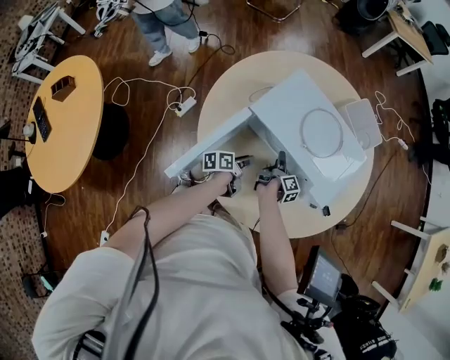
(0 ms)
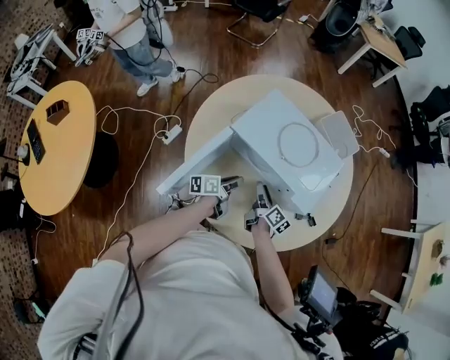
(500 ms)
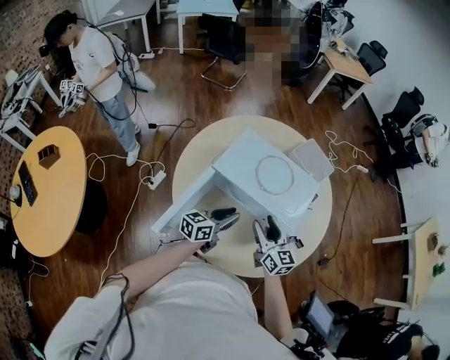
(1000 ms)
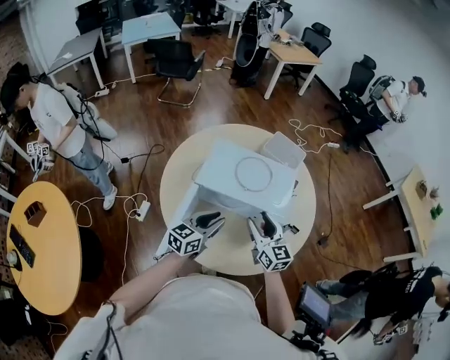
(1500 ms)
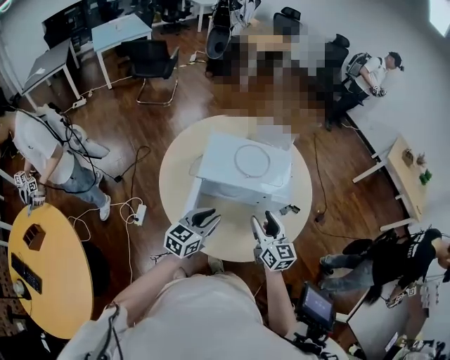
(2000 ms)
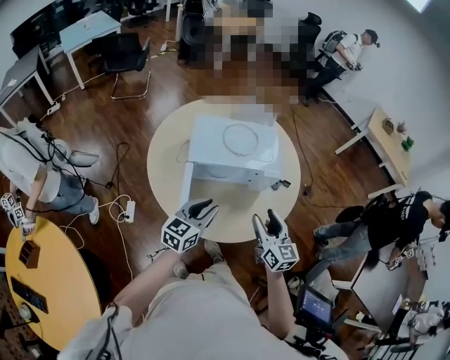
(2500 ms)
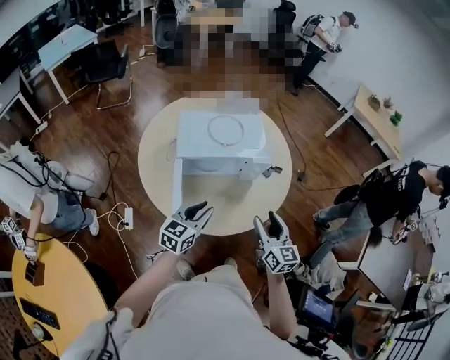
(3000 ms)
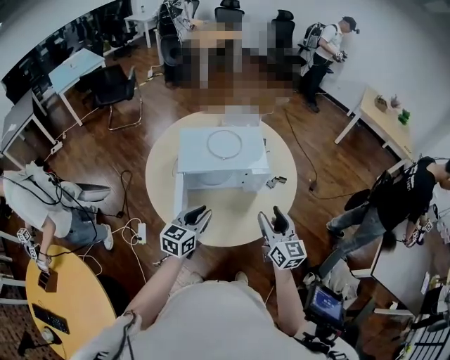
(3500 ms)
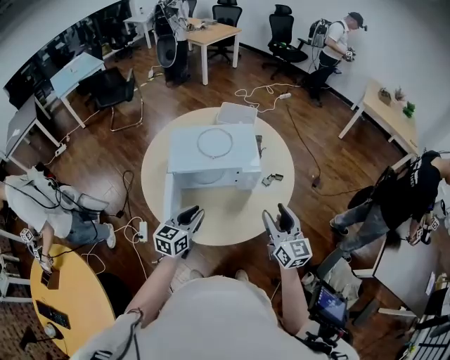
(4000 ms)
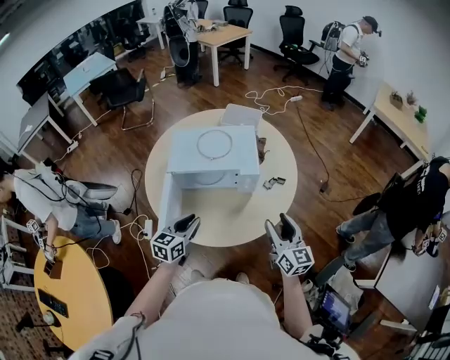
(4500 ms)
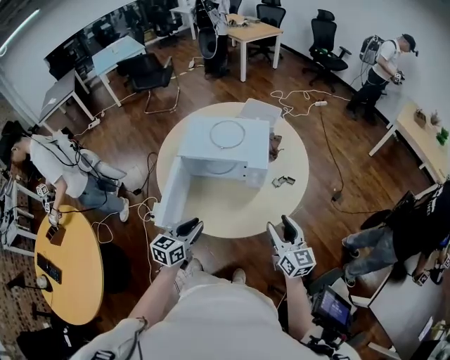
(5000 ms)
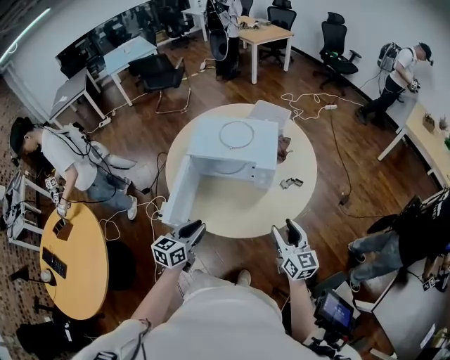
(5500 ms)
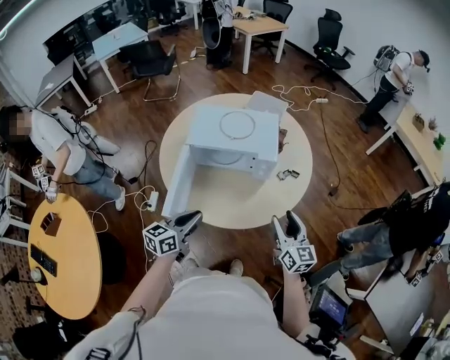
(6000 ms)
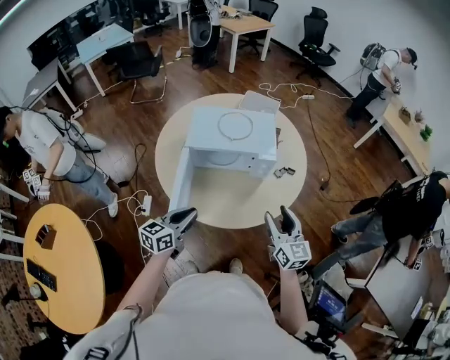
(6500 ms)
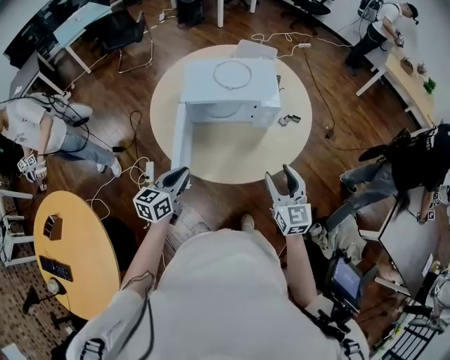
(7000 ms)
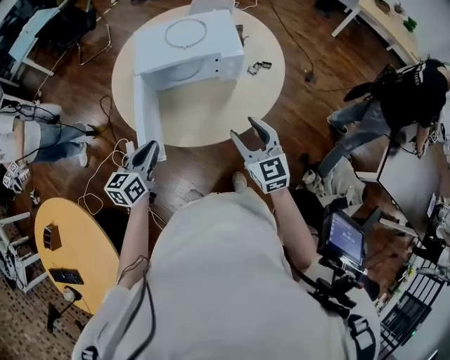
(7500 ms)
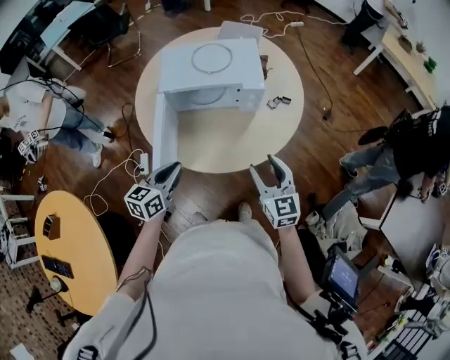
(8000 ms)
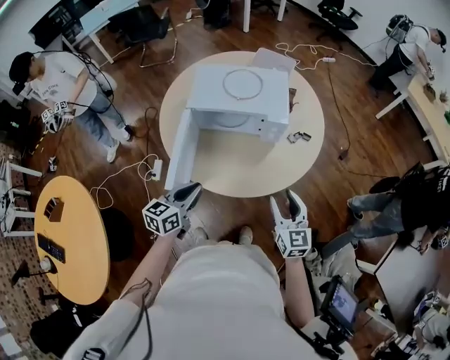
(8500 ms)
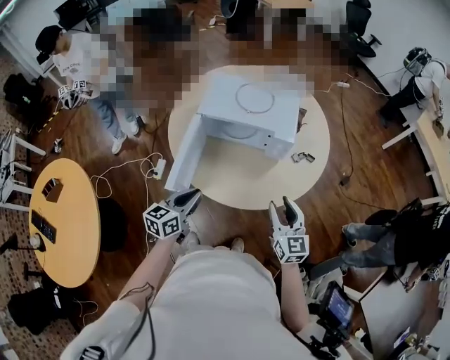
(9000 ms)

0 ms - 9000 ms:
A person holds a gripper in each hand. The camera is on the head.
0 ms - 2000 ms: The left gripper heads upward, covering approximately 30 cm, and rolls clockwise, seen from behind, by some 70 degrees, while the right gripper heads upward and backward, covering some 40 cm, and rotates around the line of its fingers by some 70 degrees, counterclockwise from behind.
2000 ms - 4500 ms: The right gripper moves to the right, about 20 cm. The left gripper goes some 10 cm to the right and backward.
4500 ms - 7000 ms: Both grippers move to the left and backward, some 15 cm.
7000 ms - 9000 ms: Both grippers travel together to the right, about 5 cm.

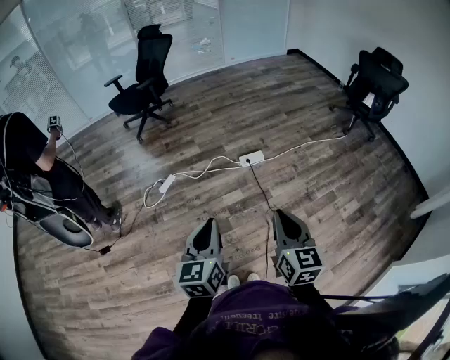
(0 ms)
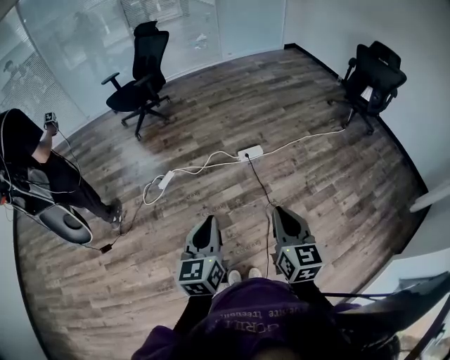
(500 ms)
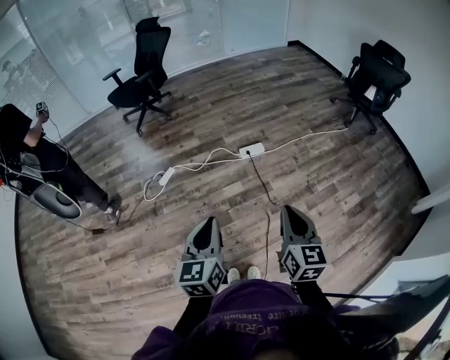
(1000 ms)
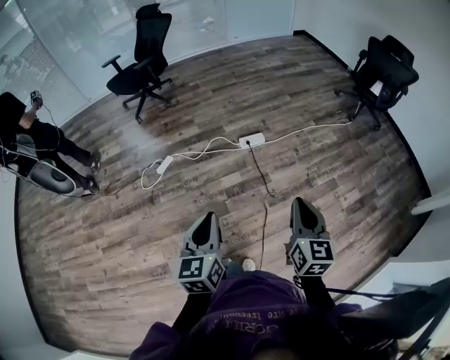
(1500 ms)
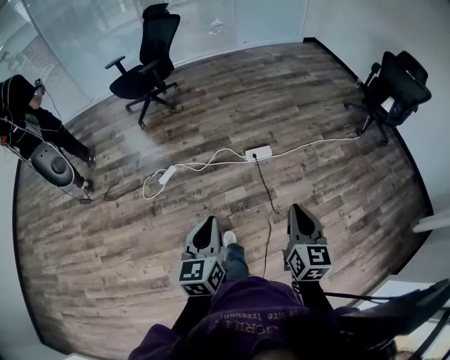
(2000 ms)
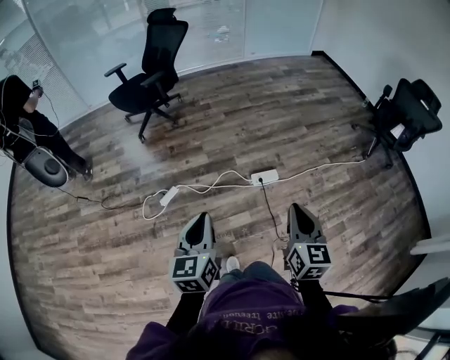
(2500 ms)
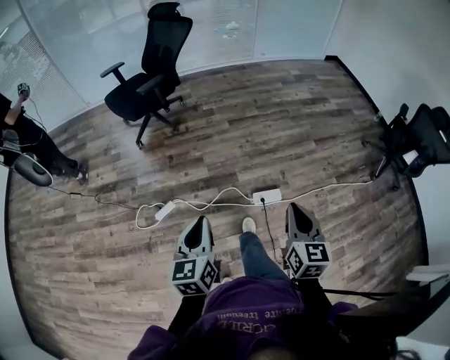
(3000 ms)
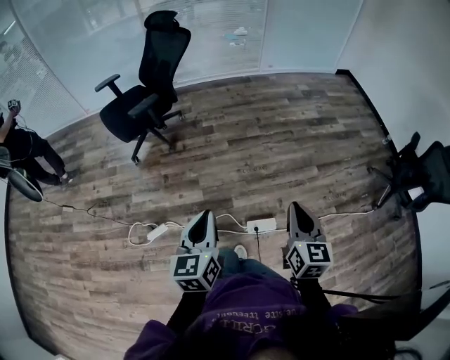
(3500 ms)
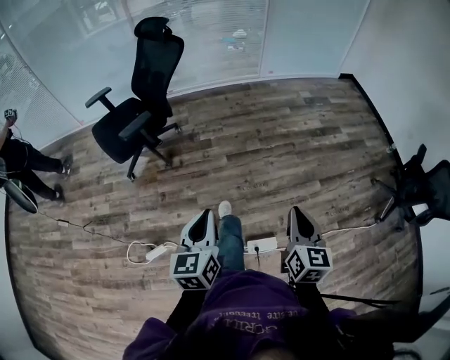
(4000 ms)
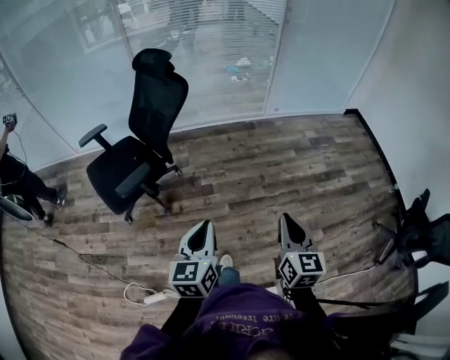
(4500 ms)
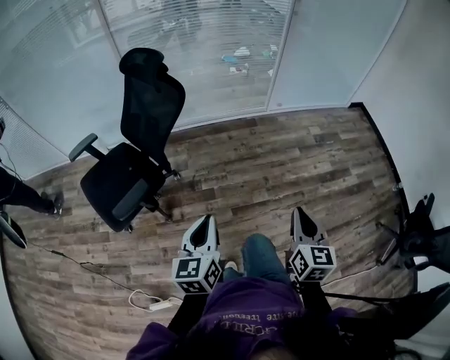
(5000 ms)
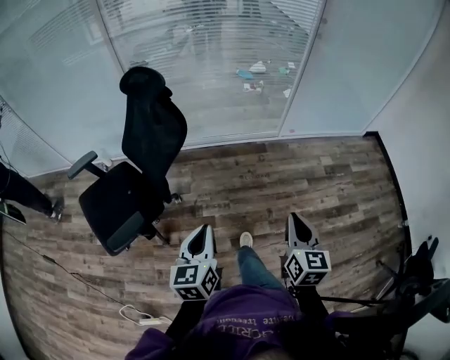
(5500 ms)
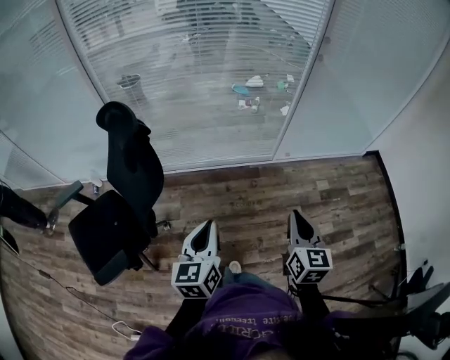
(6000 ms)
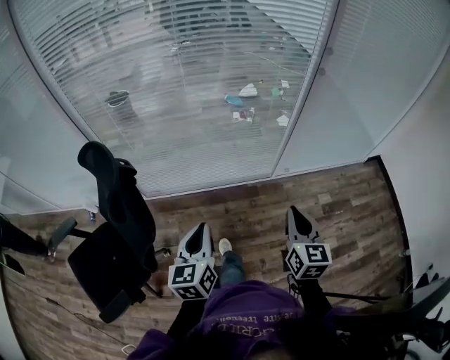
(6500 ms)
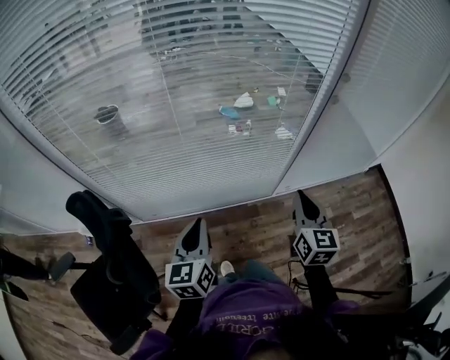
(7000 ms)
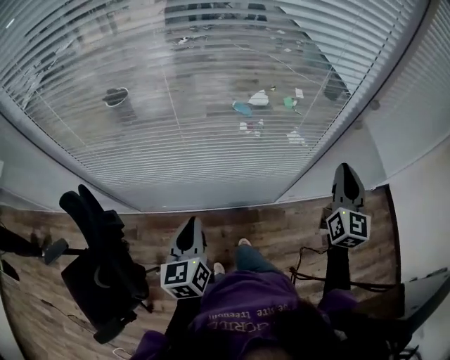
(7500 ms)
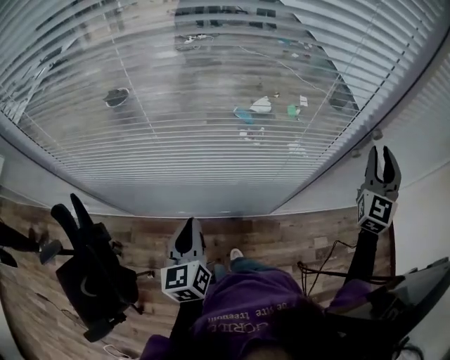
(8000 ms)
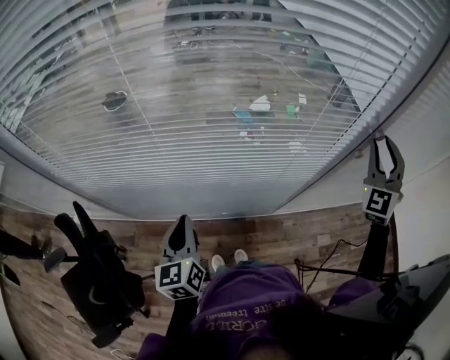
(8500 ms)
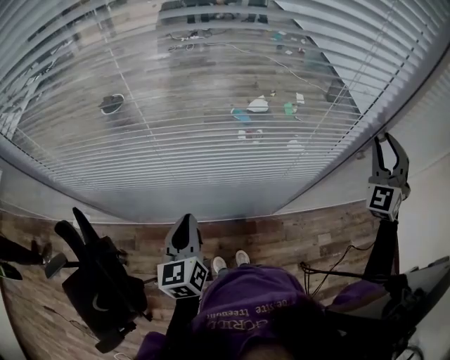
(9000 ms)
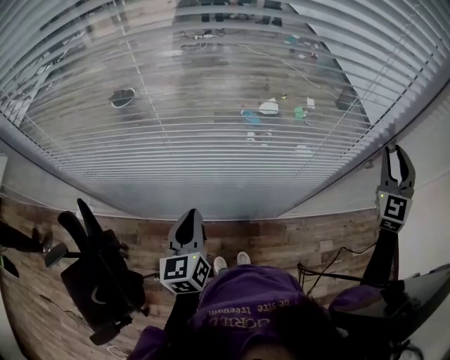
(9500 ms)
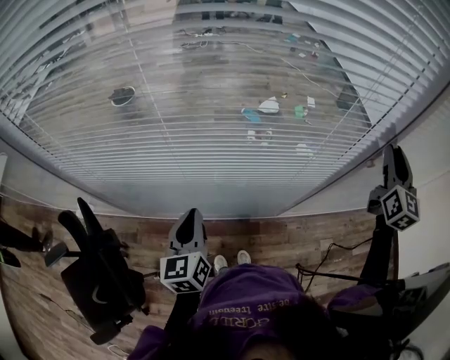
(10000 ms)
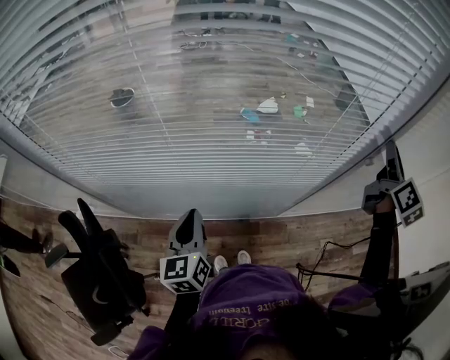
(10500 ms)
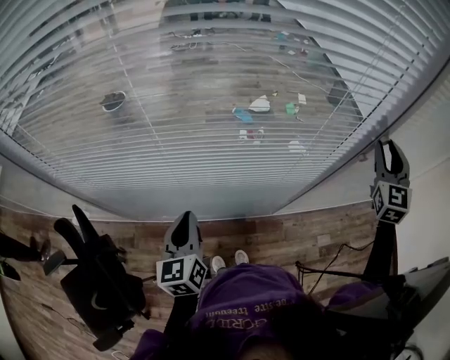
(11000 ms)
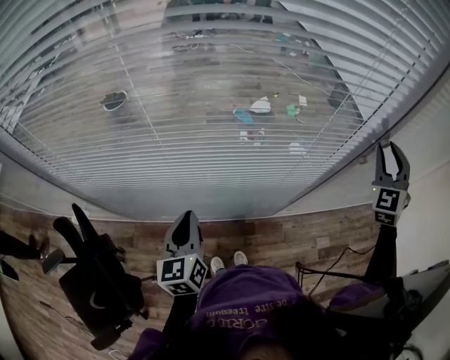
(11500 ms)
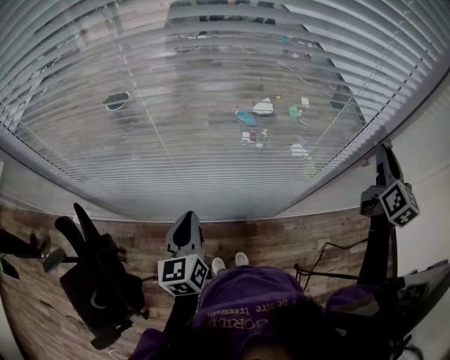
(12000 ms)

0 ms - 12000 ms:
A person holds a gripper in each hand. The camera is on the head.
0 ms - 2000 ms: The two grippers go some 10 cm forward.
2000 ms - 4000 ms: The pair of grippers is taken forward, approximately 80 cm.
4000 ms - 6000 ms: The pair of grippers is taken forward, roughly 80 cm.
6000 ms - 8000 ms: The pair of grippers is taken forward, roughly 60 cm. The right gripper turns by approximately 50 degrees, and opens.
8000 ms - 10000 ms: The left gripper shifts by approximately 5 cm. Meanwhile the right gripper turns by some 30 degrees.

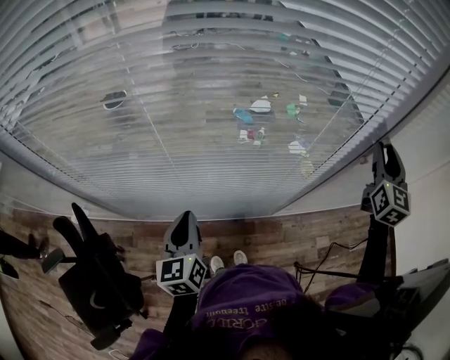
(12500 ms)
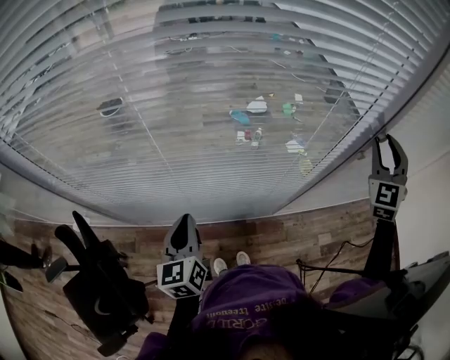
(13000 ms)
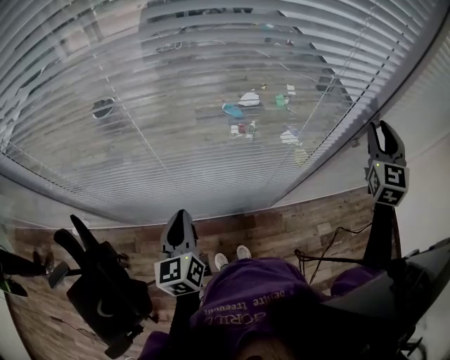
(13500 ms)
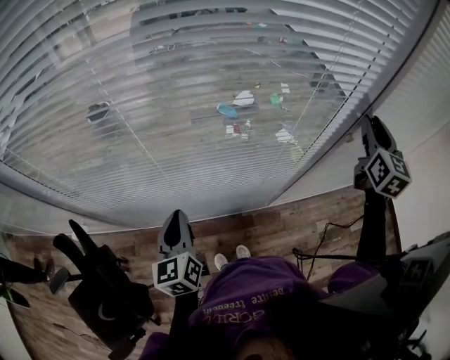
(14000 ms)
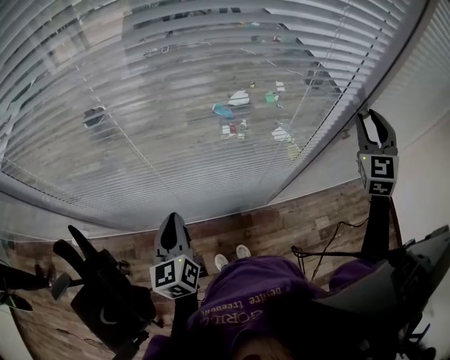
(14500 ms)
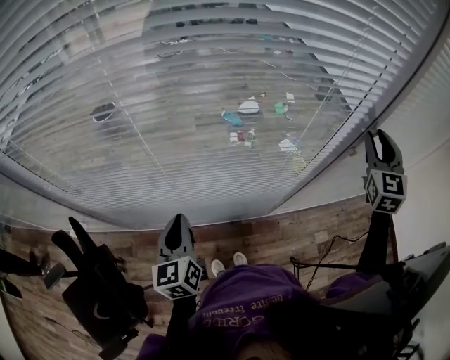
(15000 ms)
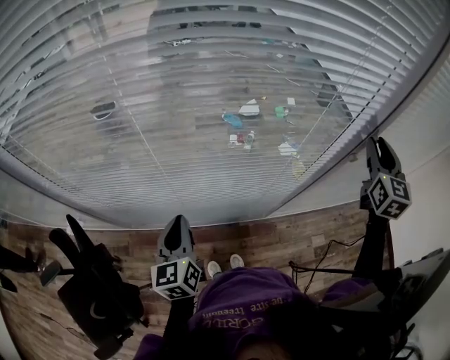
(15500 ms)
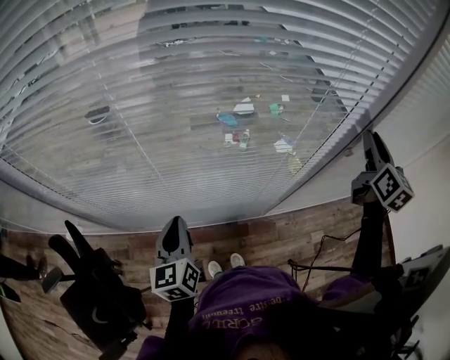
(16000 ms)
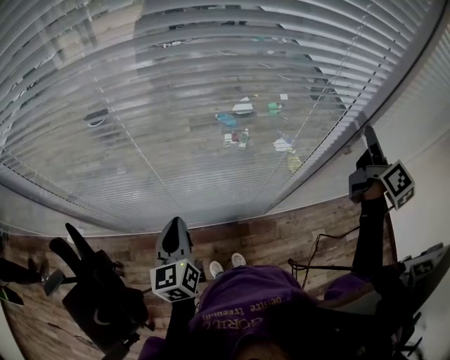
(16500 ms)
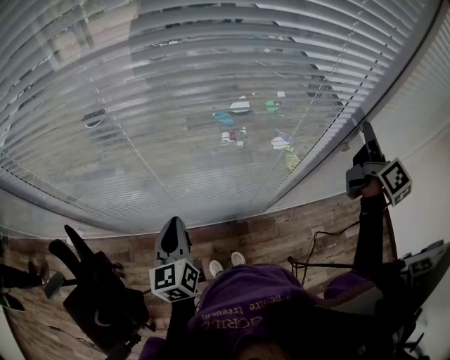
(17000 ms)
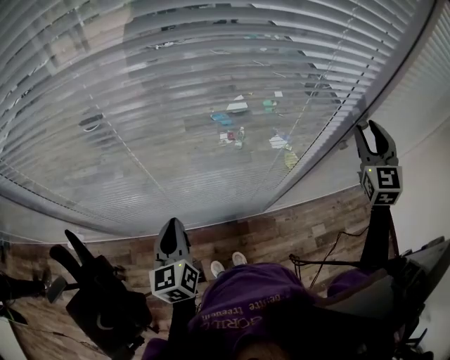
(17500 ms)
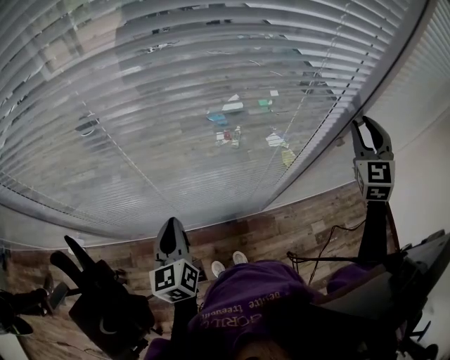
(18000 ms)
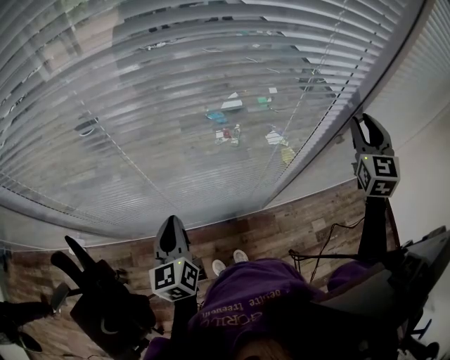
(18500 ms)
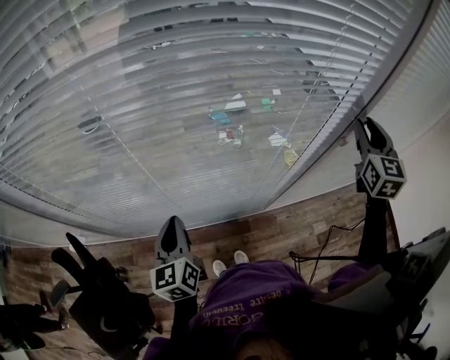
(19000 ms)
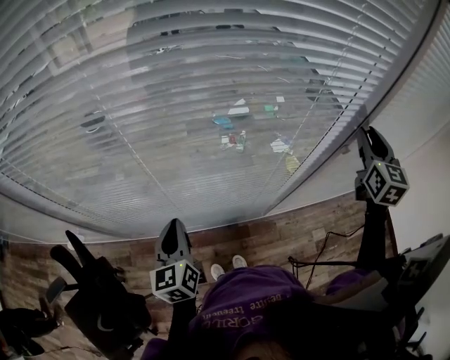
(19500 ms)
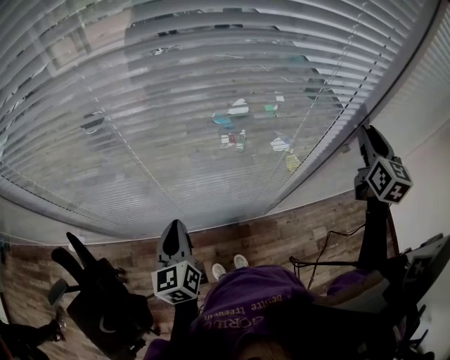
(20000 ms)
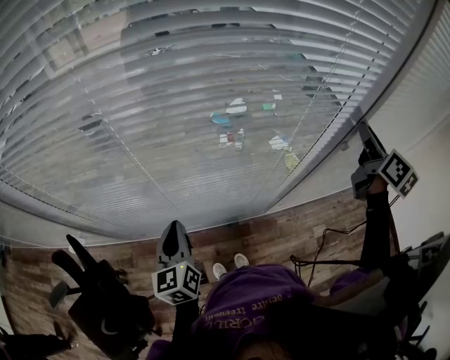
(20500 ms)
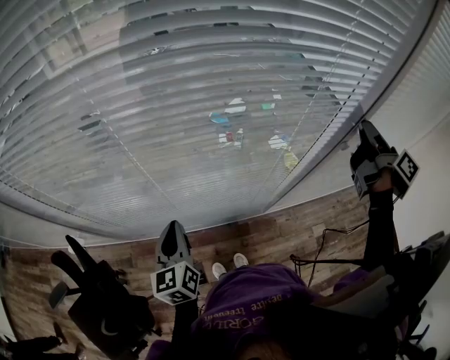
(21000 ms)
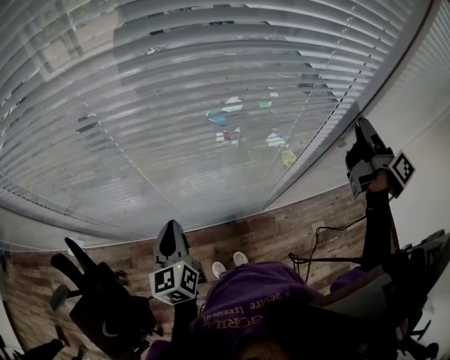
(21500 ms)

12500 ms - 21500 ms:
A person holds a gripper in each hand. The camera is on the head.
12500 ms - 14500 ms: The right gripper swivels approximately 30 degrees.
14500 ms - 17000 ms: The right gripper rotates around the line of its fingers by some 80 degrees, clockwise from behind.
17000 ms - 19500 ms: The right gripper rotates around the line of its fingers by roughly 50 degrees, counterclockwise from behind.
19500 ms - 21500 ms: The right gripper rolls clockwise, seen from behind, by some 70 degrees.
